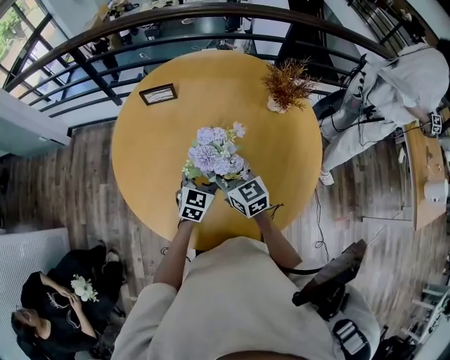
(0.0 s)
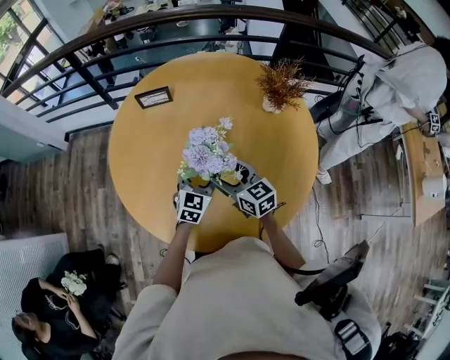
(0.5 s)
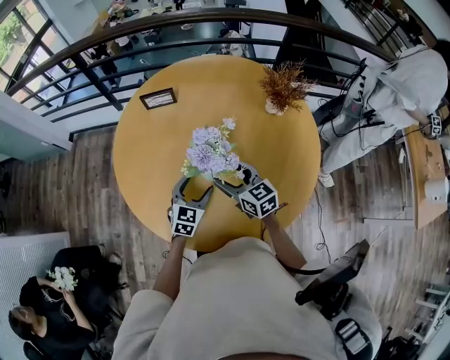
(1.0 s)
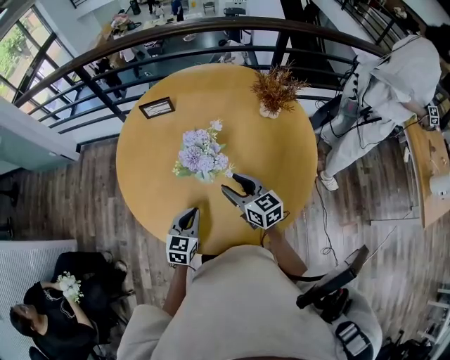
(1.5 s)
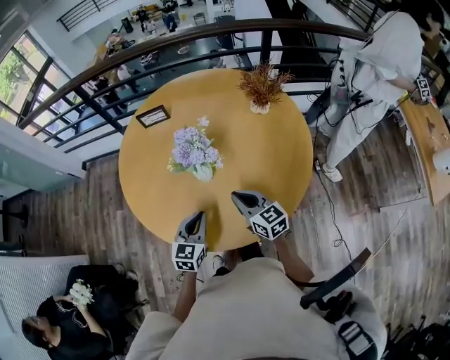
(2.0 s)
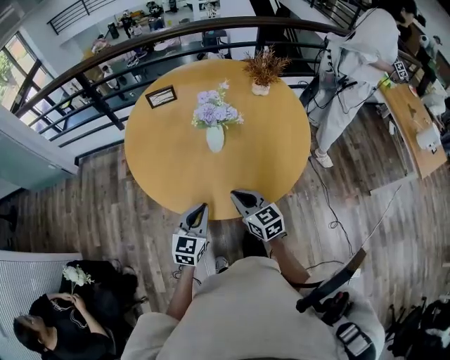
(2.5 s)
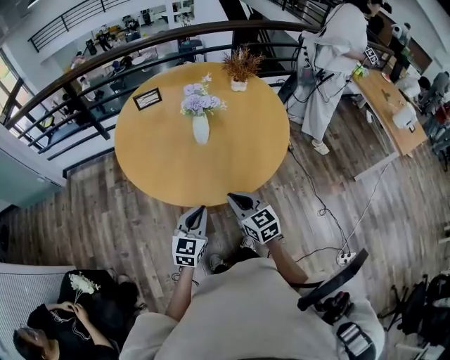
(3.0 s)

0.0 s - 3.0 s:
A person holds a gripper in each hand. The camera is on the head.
0.0 s - 1.5 s: The right gripper is displaced backward and to the right by approximately 10 cm, while the left gripper goes approximately 15 cm backward and to the left, and closes.
1.5 s - 3.0 s: The grippers both shift backward by roughly 20 cm. The right gripper closes its fingers.

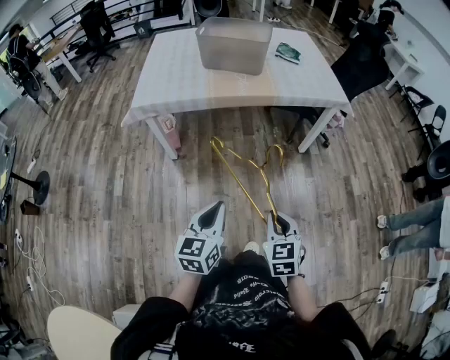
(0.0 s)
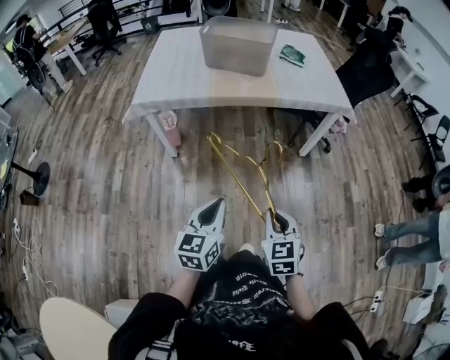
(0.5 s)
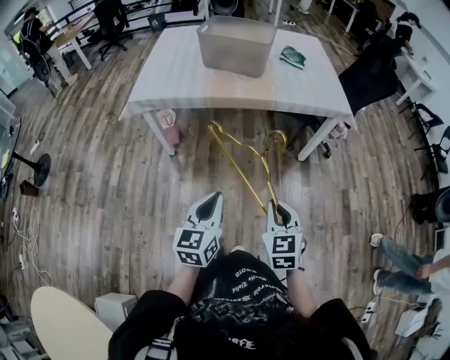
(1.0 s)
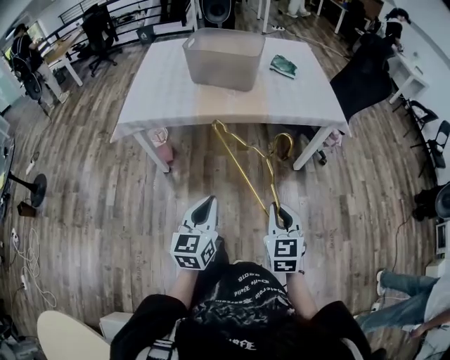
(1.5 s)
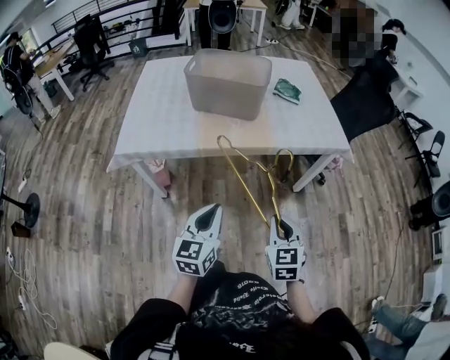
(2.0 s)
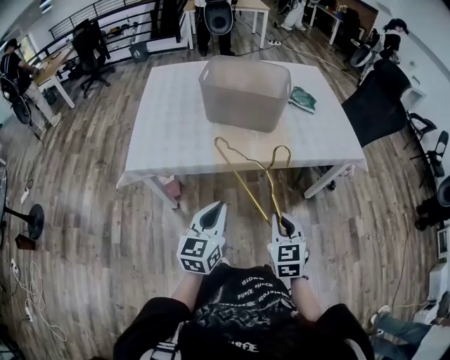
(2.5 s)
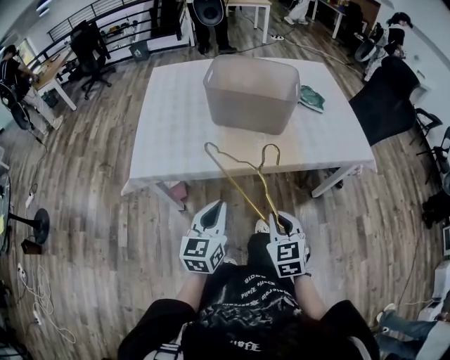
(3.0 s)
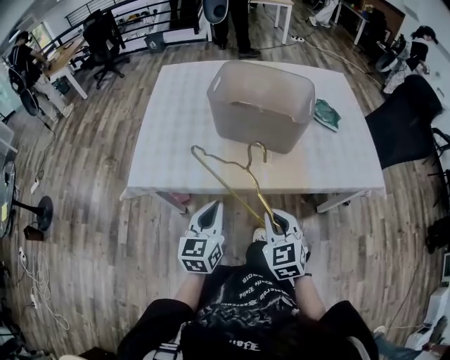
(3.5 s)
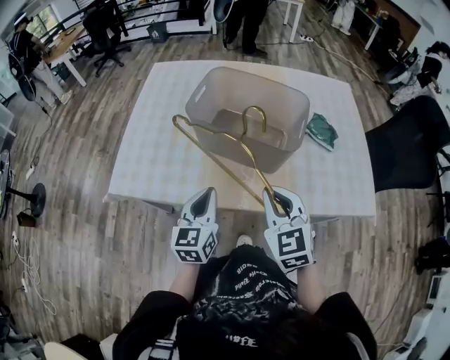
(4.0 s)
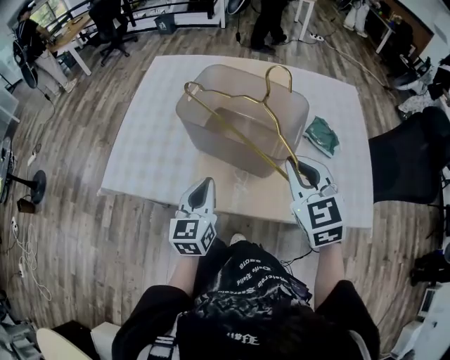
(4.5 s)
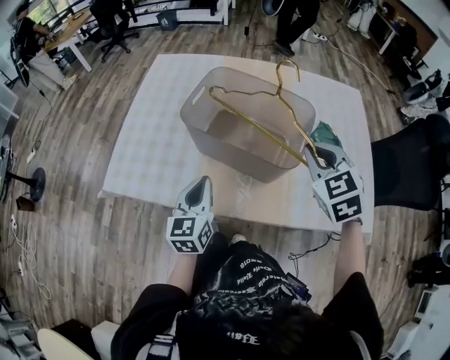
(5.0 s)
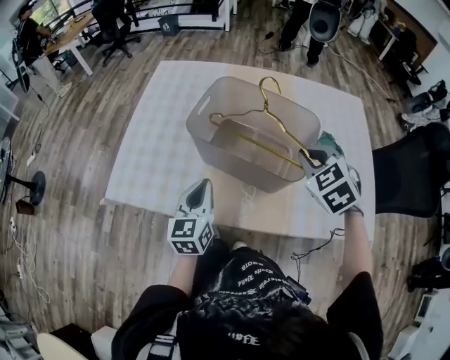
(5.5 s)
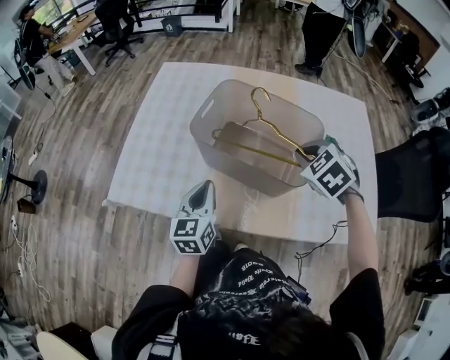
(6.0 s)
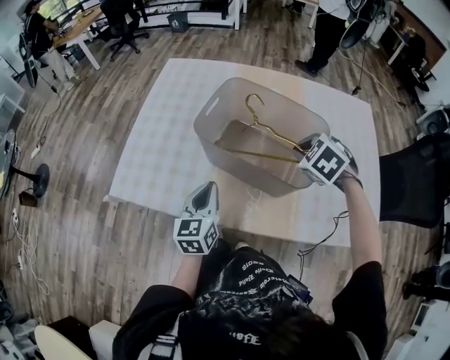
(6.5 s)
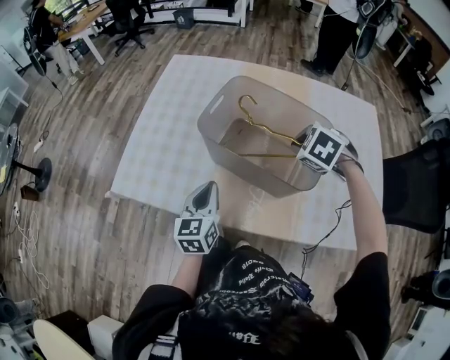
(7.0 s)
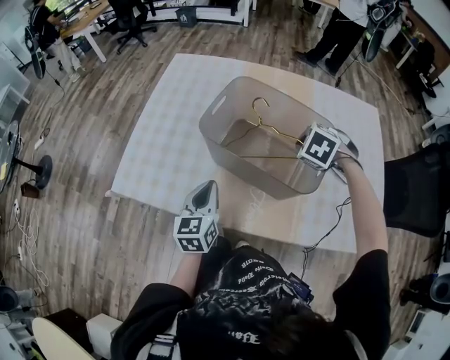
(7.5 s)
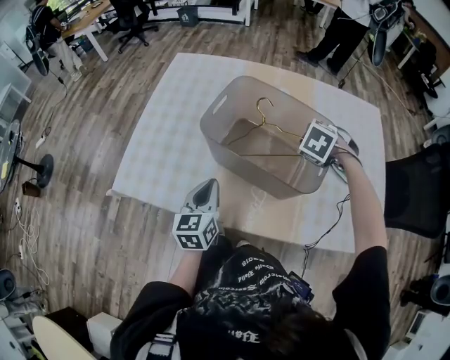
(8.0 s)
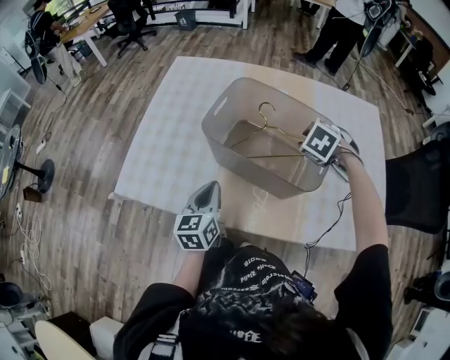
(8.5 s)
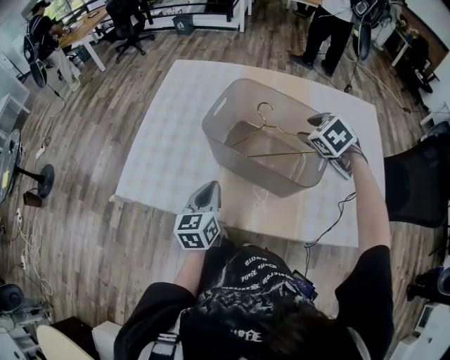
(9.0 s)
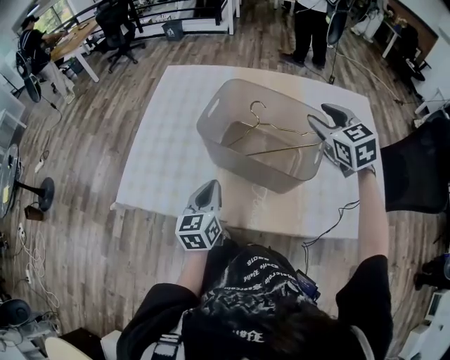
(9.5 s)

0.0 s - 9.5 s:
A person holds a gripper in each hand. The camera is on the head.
0.0 s - 2.0 s: The two grippers go about 30 cm forward.
2.0 s - 4.0 s: Both grippers are carried forward, roughly 50 cm. The right gripper swivels some 30 degrees.
4.0 s - 5.5 s: The right gripper heads forward and to the right, covering approximately 20 cm, and changes its angle by roughly 30 degrees, while the left gripper shifts roughly 10 cm forward.
5.5 s - 7.5 s: The right gripper shifts about 15 cm forward and downward, and changes its angle by roughly 30 degrees.
7.5 s - 9.5 s: The right gripper heads upward, covering about 15 cm, points its fingers some 40 degrees further upward, and opens up.

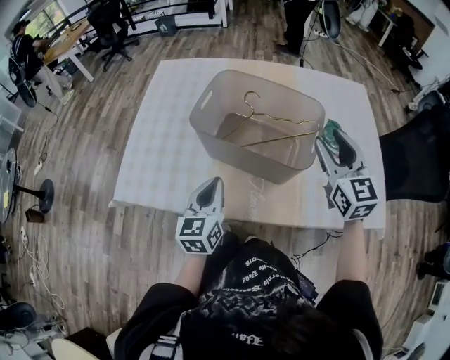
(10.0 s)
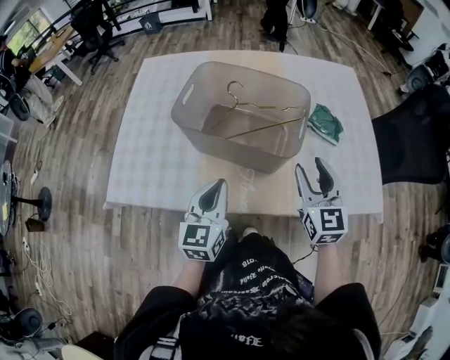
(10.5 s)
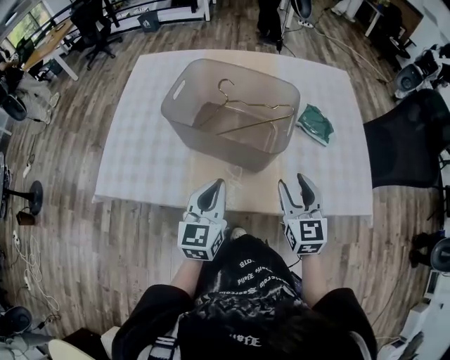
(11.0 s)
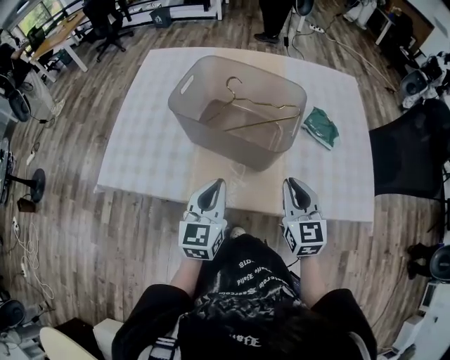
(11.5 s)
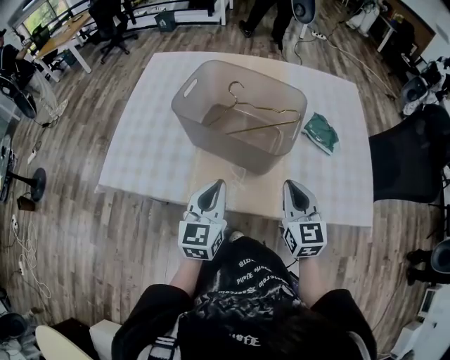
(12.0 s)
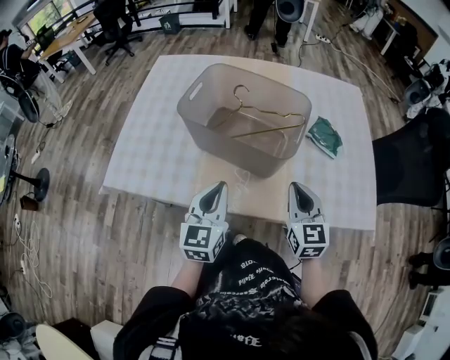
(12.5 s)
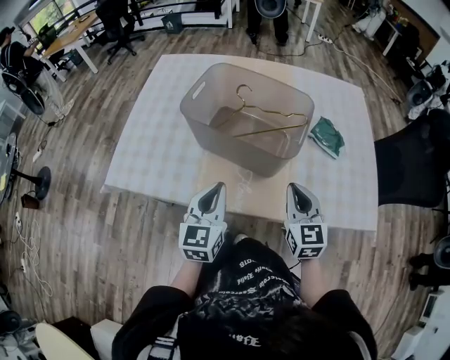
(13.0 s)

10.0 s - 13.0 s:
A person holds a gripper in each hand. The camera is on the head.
10.0 s - 11.5 s: The left gripper moves to the right and backward, approximately 10 cm, while the right gripper moves downward and backward, about 20 cm, and closes up.
11.5 s - 13.0 s: The grippers move only a little.

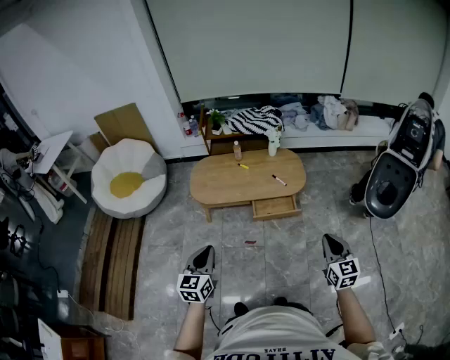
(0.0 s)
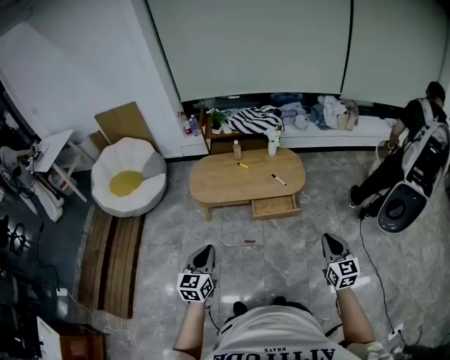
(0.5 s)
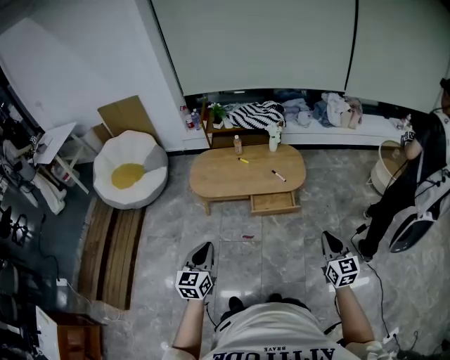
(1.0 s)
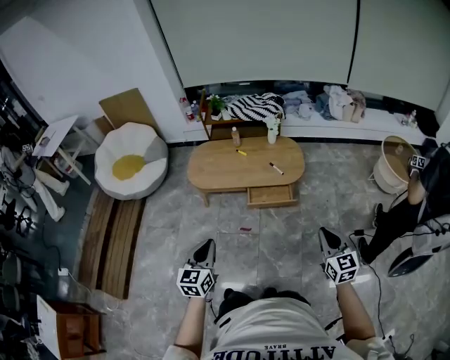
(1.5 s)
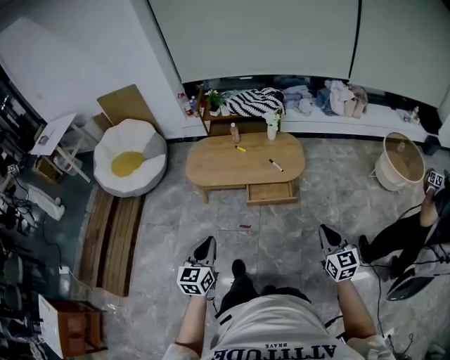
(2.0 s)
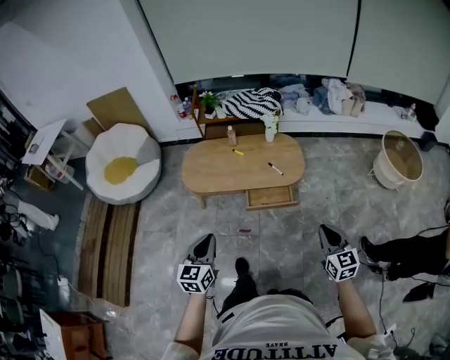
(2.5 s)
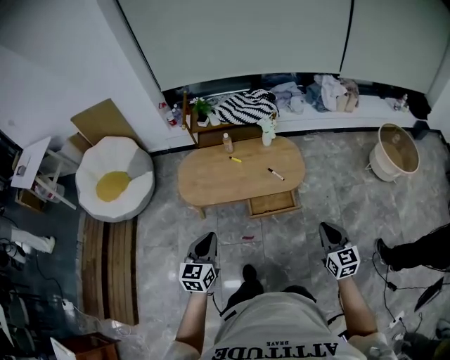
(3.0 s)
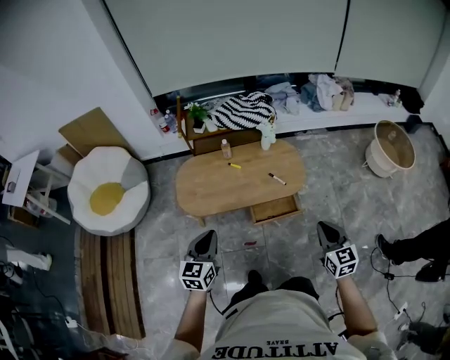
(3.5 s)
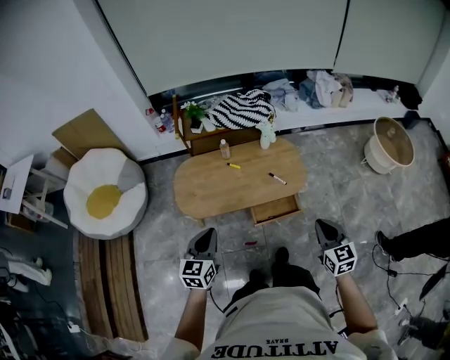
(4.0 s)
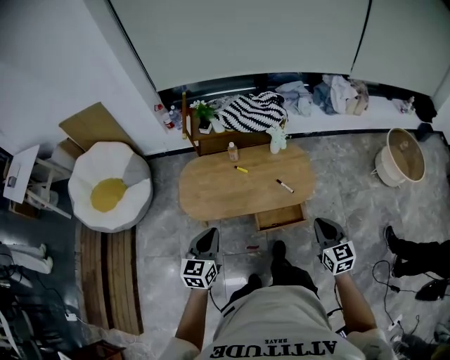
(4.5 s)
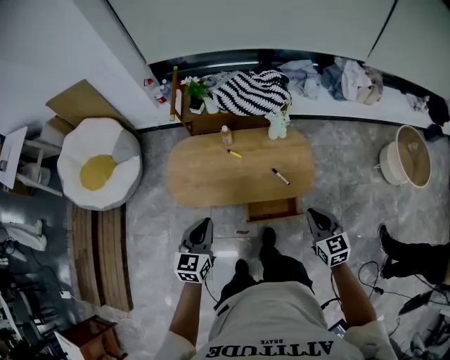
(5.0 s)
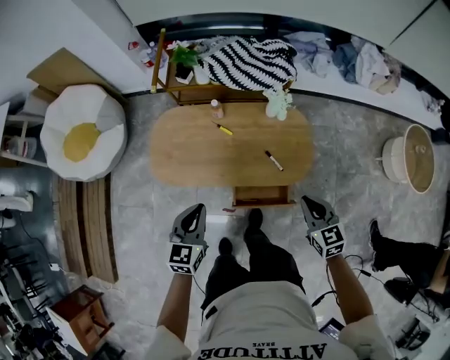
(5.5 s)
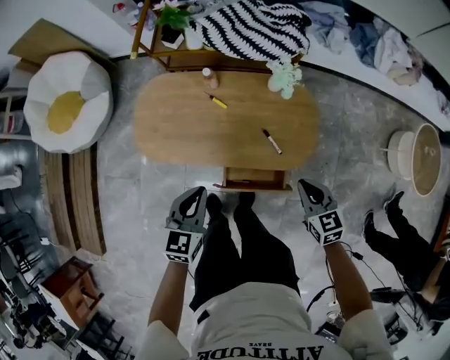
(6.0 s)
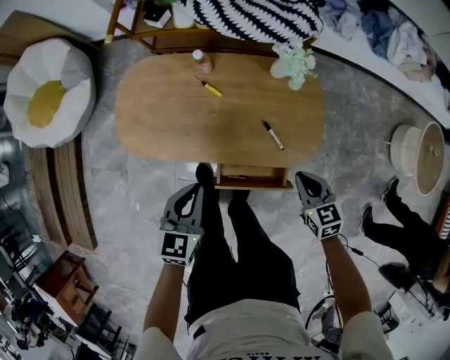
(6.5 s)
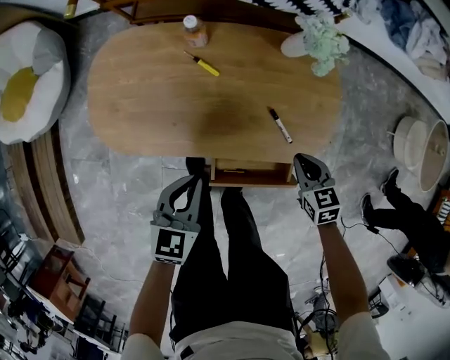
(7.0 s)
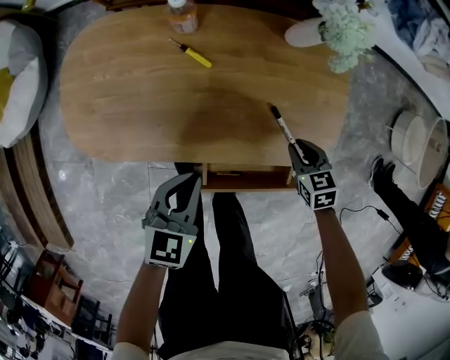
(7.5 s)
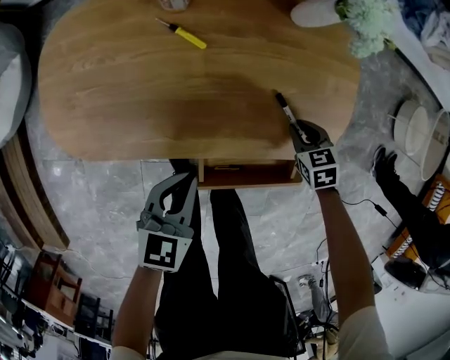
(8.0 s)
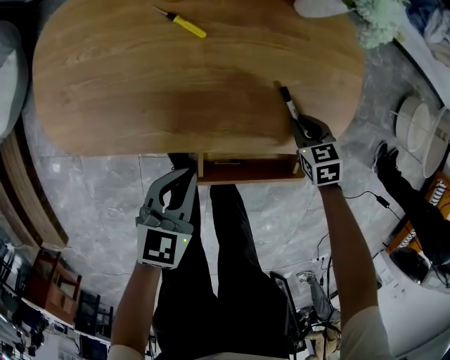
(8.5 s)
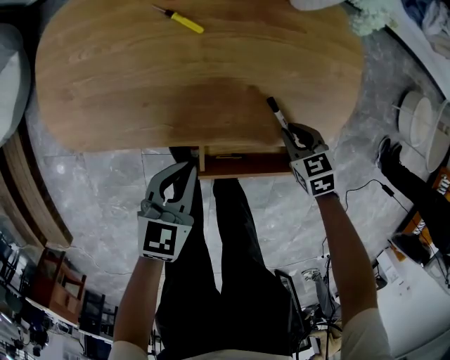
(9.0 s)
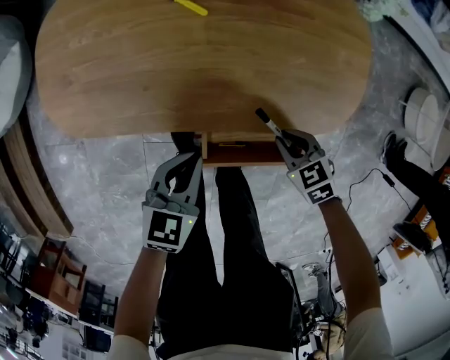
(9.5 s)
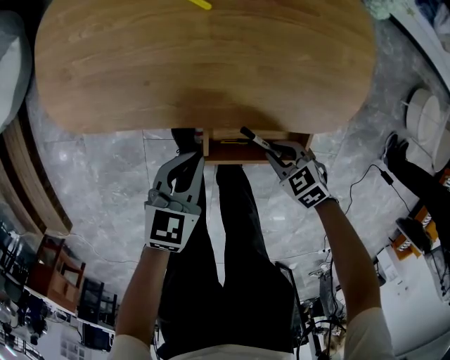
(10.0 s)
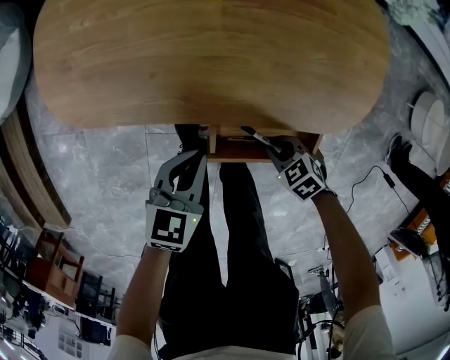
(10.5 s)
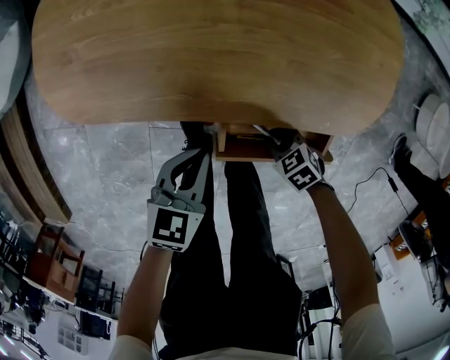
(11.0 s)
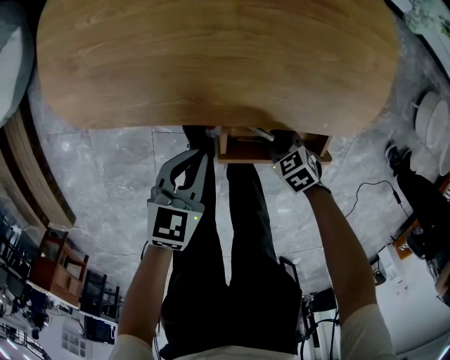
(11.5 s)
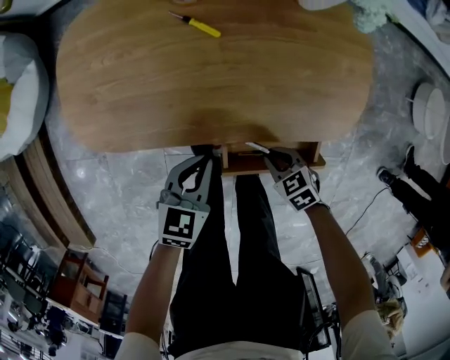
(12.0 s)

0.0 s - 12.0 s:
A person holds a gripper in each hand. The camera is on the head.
0.0 s - 2.0 s: The grippers both shift to the right by approximately 10 cm.
2.0 s - 4.0 s: Both grippers move forward and to the left, approximately 35 cm.
4.0 s - 6.0 s: The right gripper goes approximately 40 cm forward and downward, and changes its angle by about 30 degrees. The left gripper goes about 30 cm forward, to the right and downward.
6.0 s - 8.0 s: The grippers both shift downward by about 35 cm. The right gripper turns by approximately 30 degrees.
8.0 s - 10.0 s: The left gripper shifts by some 5 cm. Meanwhile the right gripper moves some 20 cm, and changes its angle by about 30 degrees.
10.0 s - 12.0 s: The right gripper reaches some 10 cm downward, then returns.
